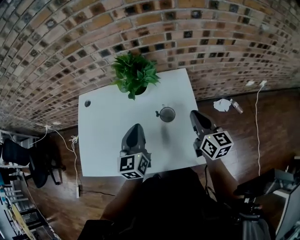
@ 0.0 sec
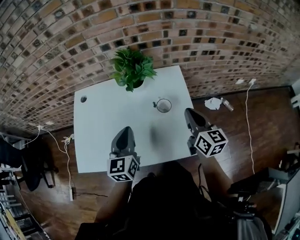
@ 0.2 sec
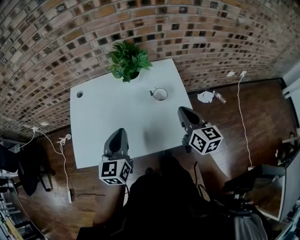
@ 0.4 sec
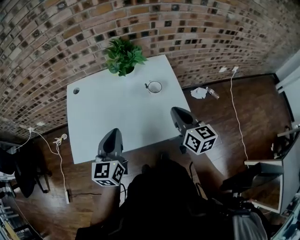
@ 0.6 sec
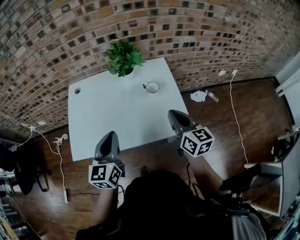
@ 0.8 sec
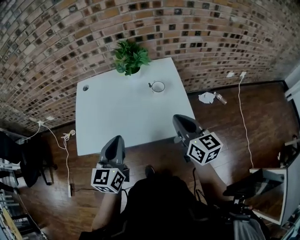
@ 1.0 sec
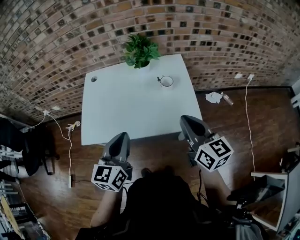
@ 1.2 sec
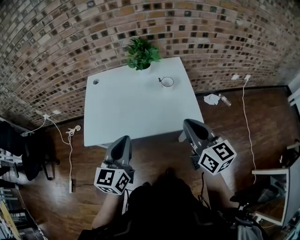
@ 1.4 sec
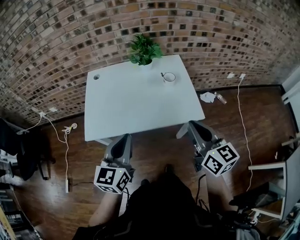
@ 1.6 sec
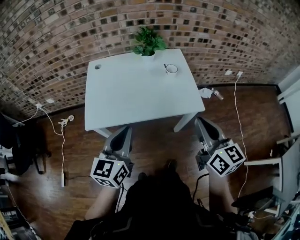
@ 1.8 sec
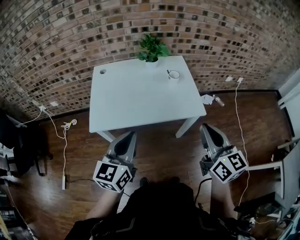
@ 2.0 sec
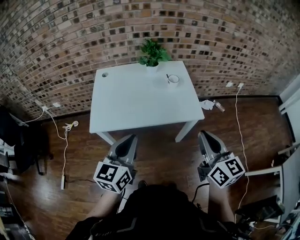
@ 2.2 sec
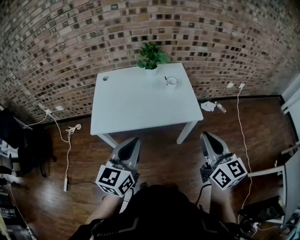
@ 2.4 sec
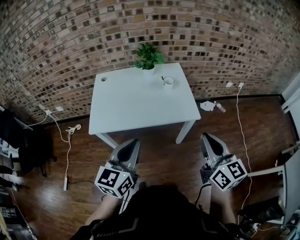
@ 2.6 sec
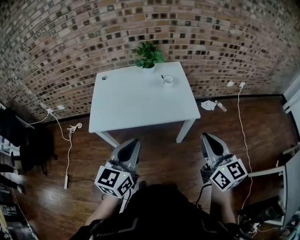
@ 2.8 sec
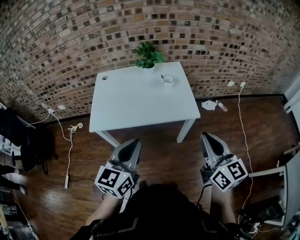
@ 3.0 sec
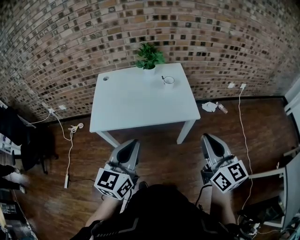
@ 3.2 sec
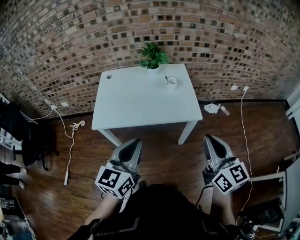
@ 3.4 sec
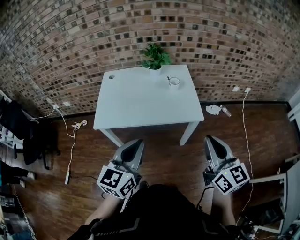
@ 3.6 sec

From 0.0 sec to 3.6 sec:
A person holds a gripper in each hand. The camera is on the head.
From 0.0 sec to 1.8 sec: The left gripper moves backward and to the left, approximately 40 cm. The right gripper is displaced backward by roughly 40 cm.
From 1.8 sec to 3.6 sec: The grippers both shift backward and to the right by roughly 15 cm.

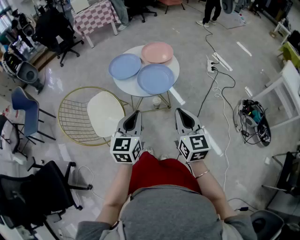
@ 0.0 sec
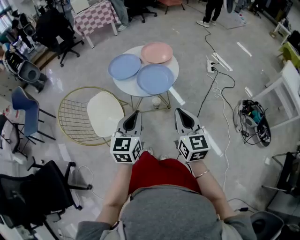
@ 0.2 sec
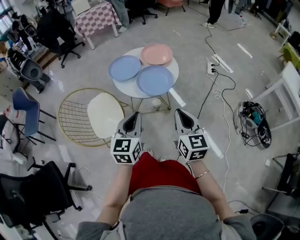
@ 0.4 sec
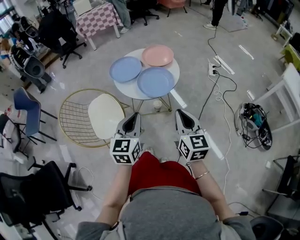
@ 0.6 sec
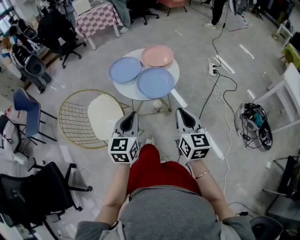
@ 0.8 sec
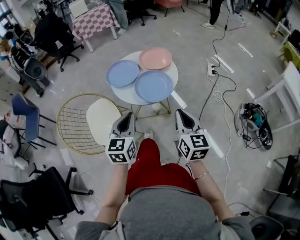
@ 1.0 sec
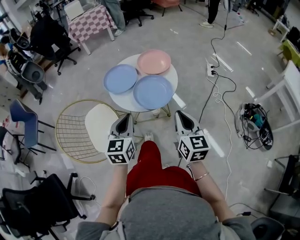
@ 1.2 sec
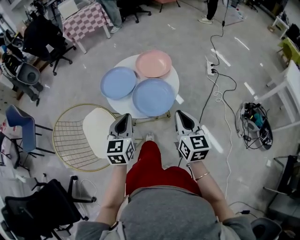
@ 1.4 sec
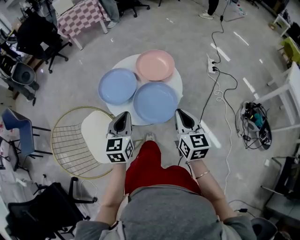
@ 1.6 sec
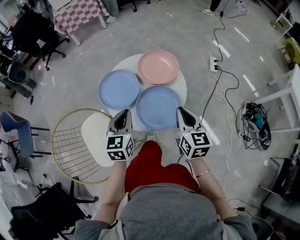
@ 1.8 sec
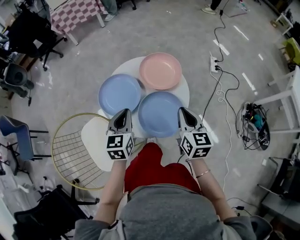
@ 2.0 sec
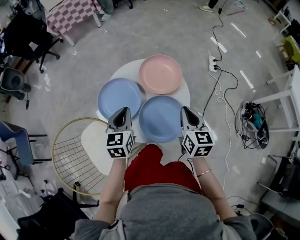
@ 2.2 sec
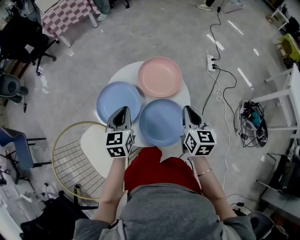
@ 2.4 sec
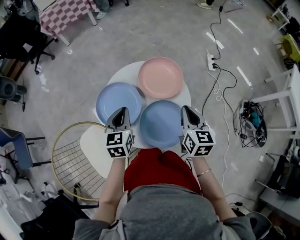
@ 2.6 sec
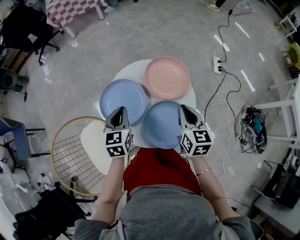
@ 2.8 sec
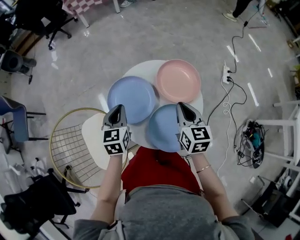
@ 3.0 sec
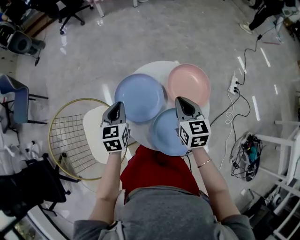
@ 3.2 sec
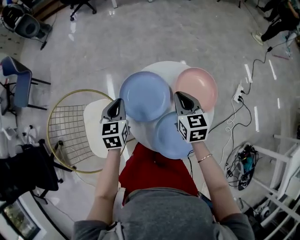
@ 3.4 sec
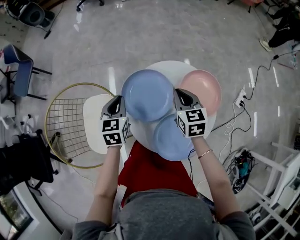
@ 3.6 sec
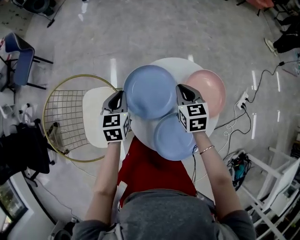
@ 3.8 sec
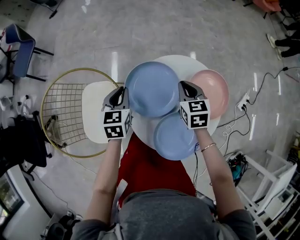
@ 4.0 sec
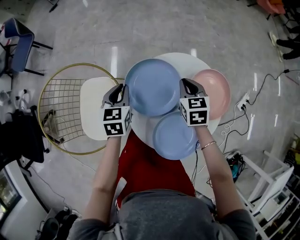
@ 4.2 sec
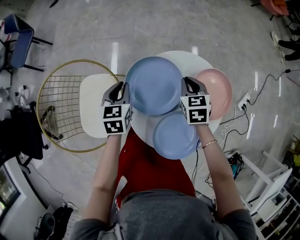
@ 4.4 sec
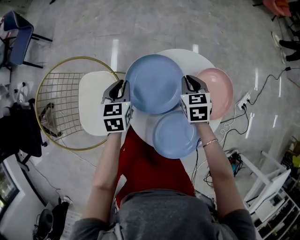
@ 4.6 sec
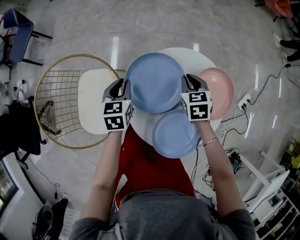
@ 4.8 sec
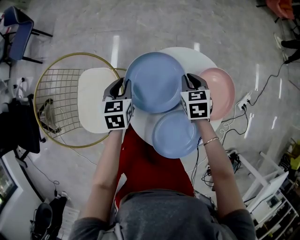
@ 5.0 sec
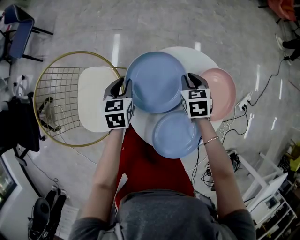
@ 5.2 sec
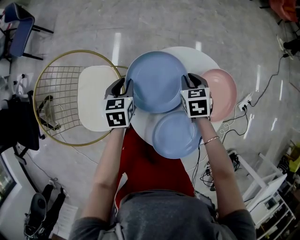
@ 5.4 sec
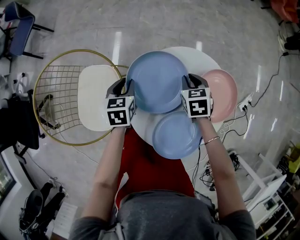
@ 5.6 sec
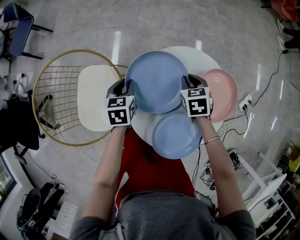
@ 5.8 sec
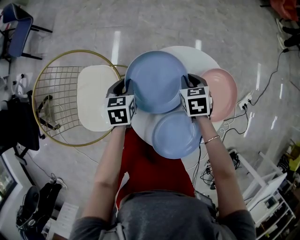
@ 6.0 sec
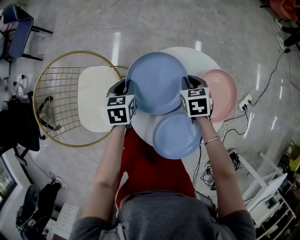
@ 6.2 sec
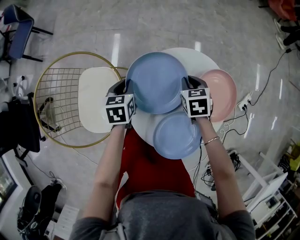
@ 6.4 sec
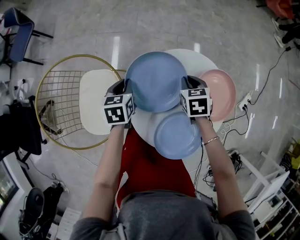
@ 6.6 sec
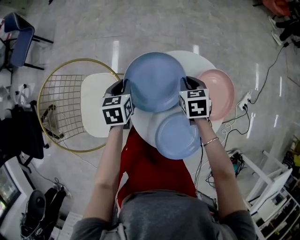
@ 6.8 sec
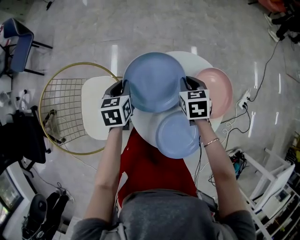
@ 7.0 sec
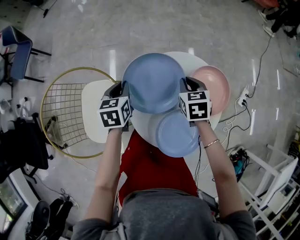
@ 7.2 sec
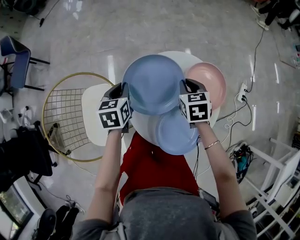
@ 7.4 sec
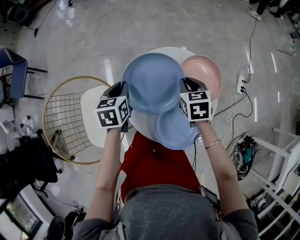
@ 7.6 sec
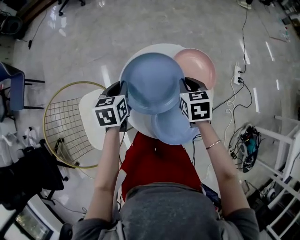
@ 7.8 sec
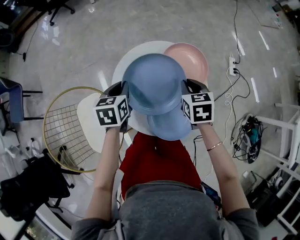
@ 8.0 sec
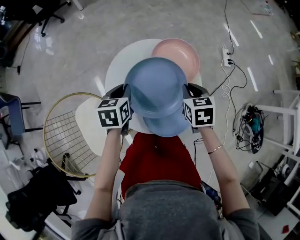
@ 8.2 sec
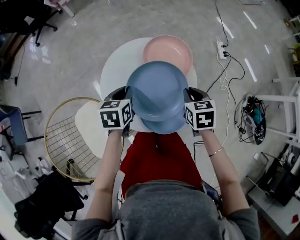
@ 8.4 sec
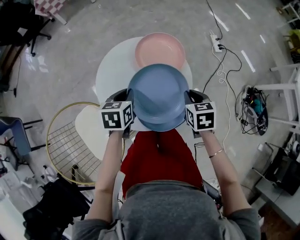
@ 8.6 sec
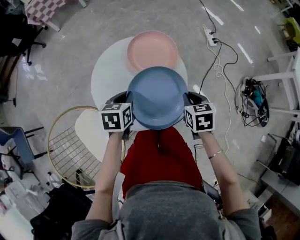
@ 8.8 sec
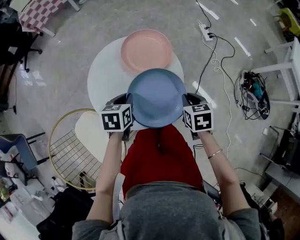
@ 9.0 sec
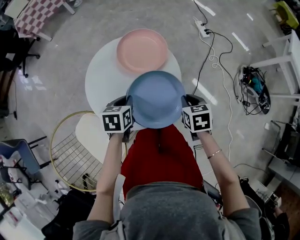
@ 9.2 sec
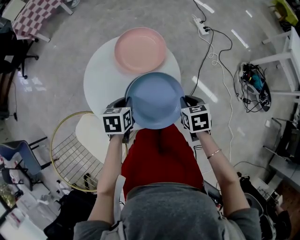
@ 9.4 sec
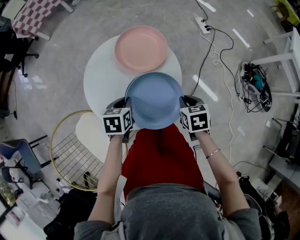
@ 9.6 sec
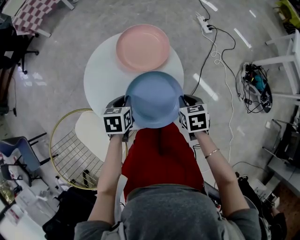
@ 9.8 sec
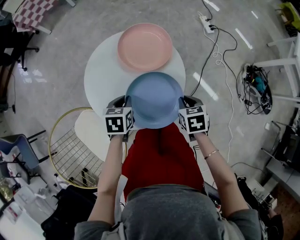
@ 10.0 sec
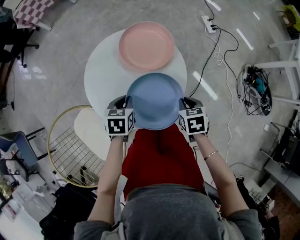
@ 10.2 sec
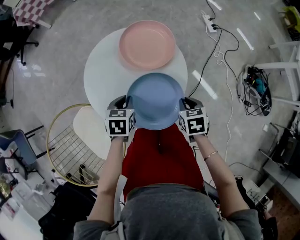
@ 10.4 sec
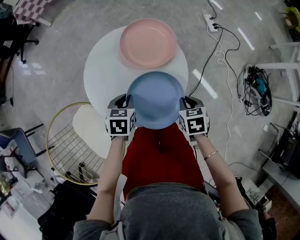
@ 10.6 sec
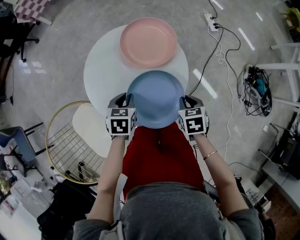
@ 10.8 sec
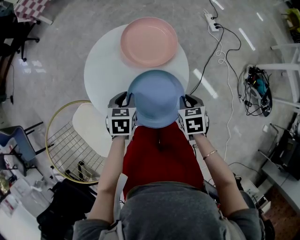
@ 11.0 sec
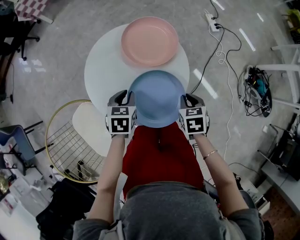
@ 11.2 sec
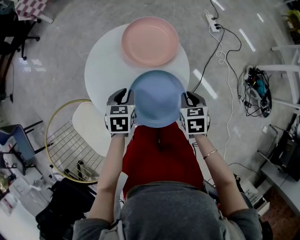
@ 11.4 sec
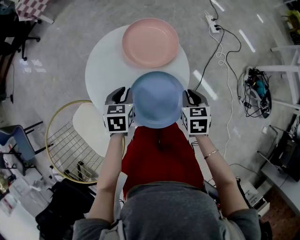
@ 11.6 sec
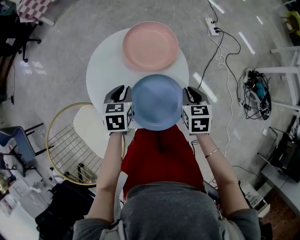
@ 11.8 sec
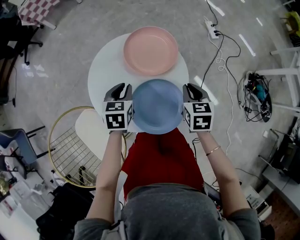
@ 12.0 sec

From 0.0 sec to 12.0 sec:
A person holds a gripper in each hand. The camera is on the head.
From 0.0 sec to 1.6 sec: Both grippers move forward, some 20 cm.
From 1.6 sec to 3.0 sec: The right gripper is displaced forward by some 20 cm, while the left gripper shifts about 20 cm forward and to the left.
From 3.0 sec to 4.4 sec: The left gripper heads to the left and downward, covering some 15 cm, and rotates roughly 30 degrees; the right gripper goes about 25 cm forward, downward and to the left, and swivels approximately 40 degrees.
From 4.4 sec to 6.0 sec: The left gripper moves downward, roughly 5 cm.
From 6.0 sec to 7.6 sec: The right gripper is displaced upward and backward by some 10 cm, and turns by roughly 20 degrees. Meanwhile the left gripper travels upward by about 10 cm.
From 7.6 sec to 9.0 sec: The left gripper ends up roughly 20 cm from where it was, and rotates some 40 degrees. Meanwhile the right gripper ends up roughly 30 cm from where it was, and rotates some 40 degrees.
From 9.0 sec to 10.4 sec: The two grippers go some 5 cm downward.
From 10.4 sec to 12.0 sec: Both grippers travel together forward and upward, roughly 10 cm.

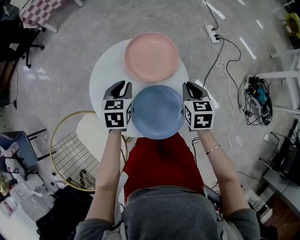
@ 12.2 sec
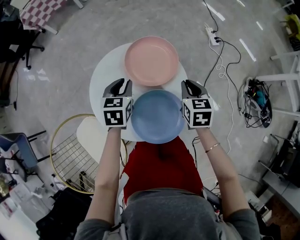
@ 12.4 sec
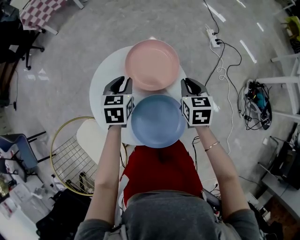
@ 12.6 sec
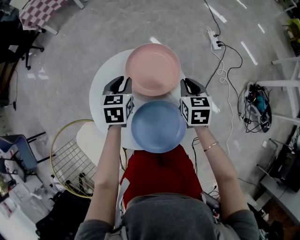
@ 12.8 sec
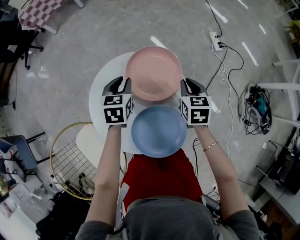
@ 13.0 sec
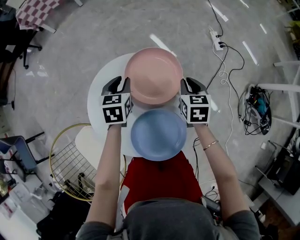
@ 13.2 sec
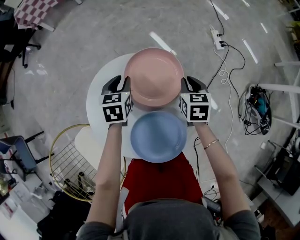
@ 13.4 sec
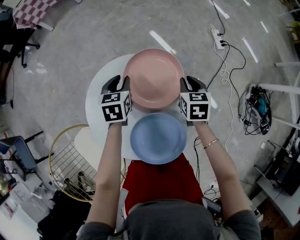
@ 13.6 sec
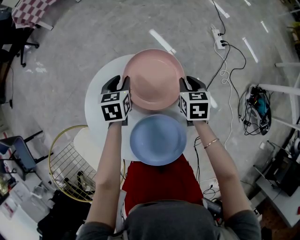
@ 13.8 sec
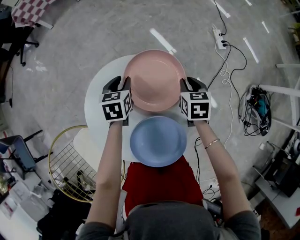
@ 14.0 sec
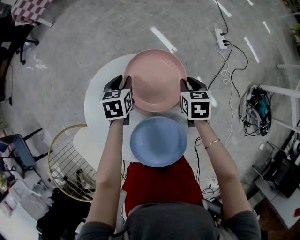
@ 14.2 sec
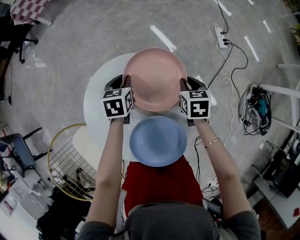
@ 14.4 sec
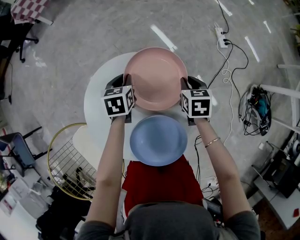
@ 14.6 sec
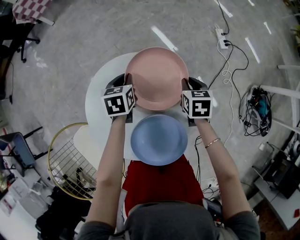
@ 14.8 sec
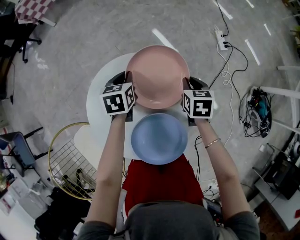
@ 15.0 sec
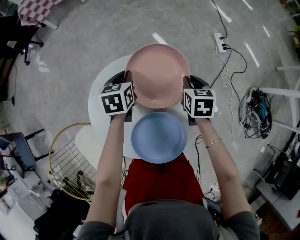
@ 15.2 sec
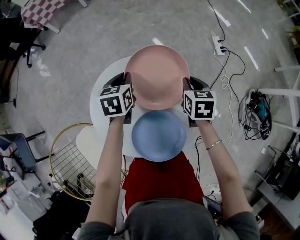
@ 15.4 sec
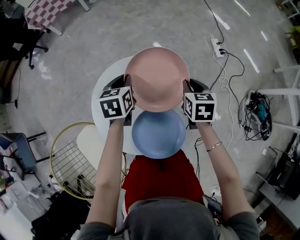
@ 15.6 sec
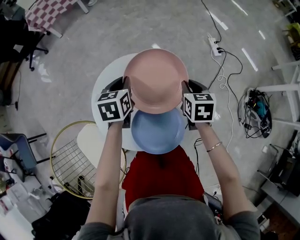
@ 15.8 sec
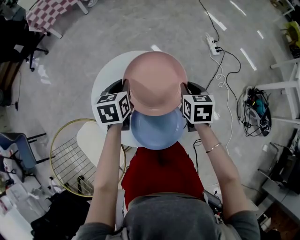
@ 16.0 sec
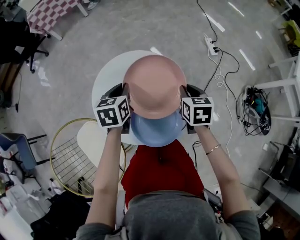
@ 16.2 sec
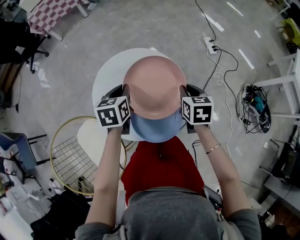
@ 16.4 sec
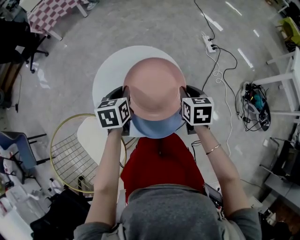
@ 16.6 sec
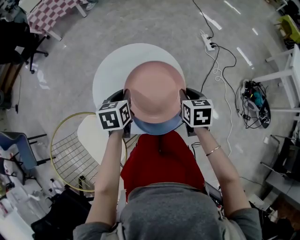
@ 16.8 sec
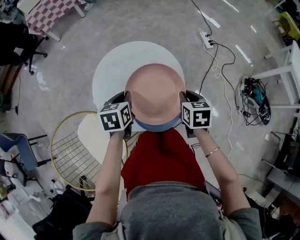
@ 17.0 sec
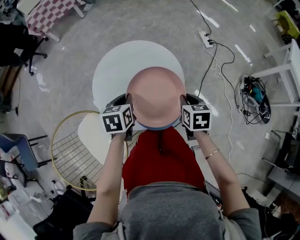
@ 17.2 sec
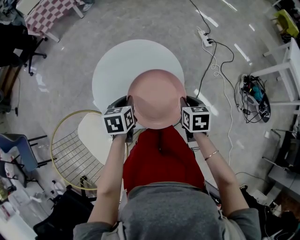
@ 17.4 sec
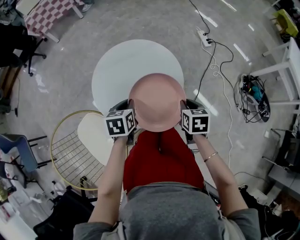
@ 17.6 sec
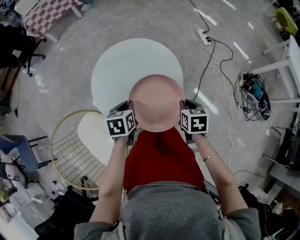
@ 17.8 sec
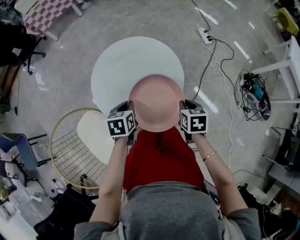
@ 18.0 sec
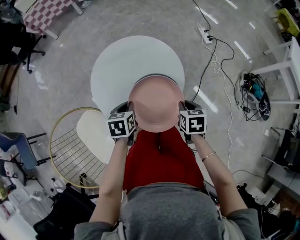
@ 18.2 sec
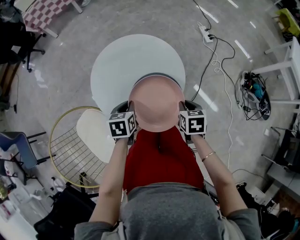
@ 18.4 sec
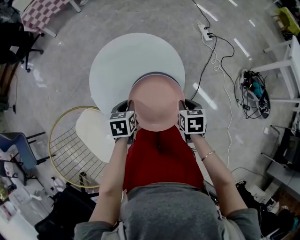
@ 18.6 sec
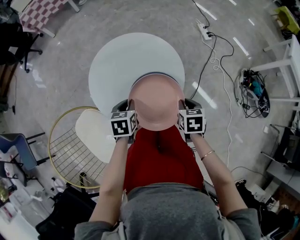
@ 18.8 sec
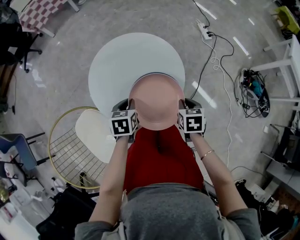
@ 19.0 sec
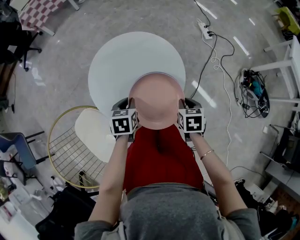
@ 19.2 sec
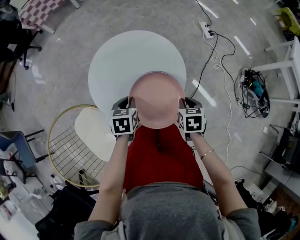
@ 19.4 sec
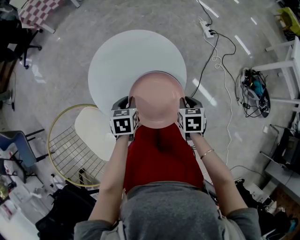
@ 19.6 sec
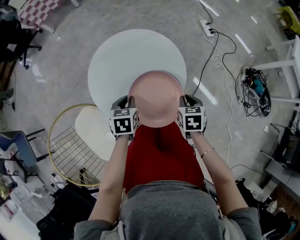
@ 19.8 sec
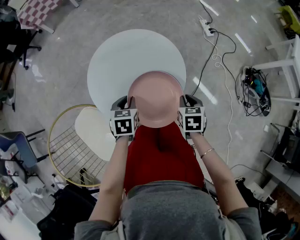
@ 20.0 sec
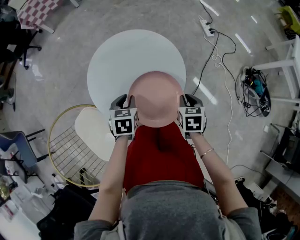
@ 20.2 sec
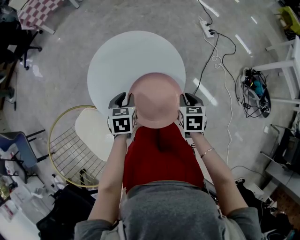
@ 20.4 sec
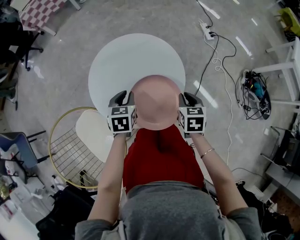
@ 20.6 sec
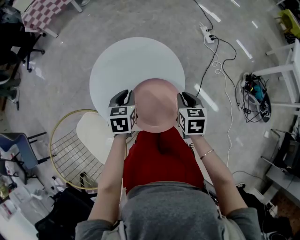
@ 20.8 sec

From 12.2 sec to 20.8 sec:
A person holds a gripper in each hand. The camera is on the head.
From 12.2 sec to 13.6 sec: The grippers both shift forward and downward by some 15 cm.
From 13.6 sec to 15.0 sec: The left gripper closes its fingers.
From 15.0 sec to 16.6 sec: The two grippers go some 20 cm backward and upward.
From 16.6 sec to 18.0 sec: Both grippers travel together backward and downward, roughly 15 cm.
From 18.0 sec to 19.4 sec: The grippers stay close to where they were, moving slightly.
From 19.4 sec to 20.8 sec: The right gripper shifts by about 5 cm. The left gripper shifts roughly 5 cm forward.
